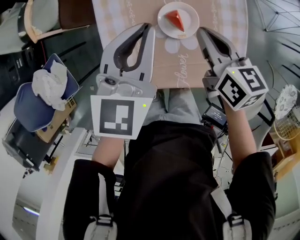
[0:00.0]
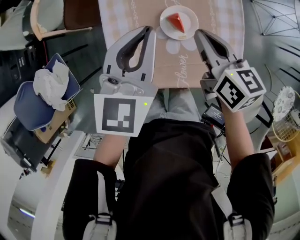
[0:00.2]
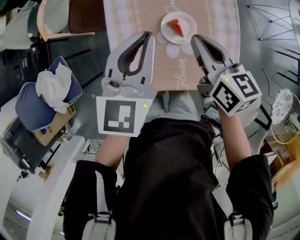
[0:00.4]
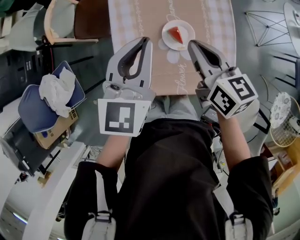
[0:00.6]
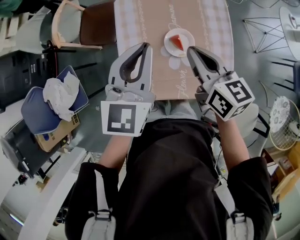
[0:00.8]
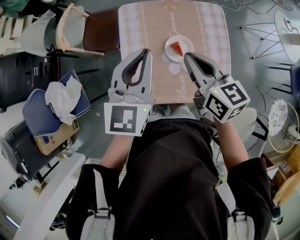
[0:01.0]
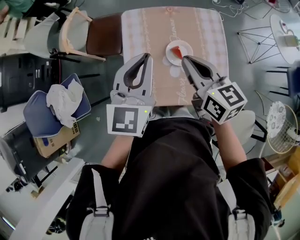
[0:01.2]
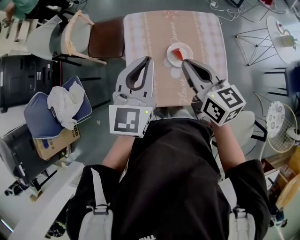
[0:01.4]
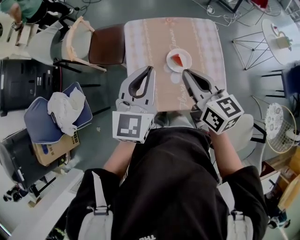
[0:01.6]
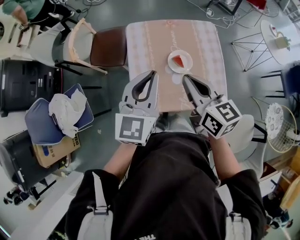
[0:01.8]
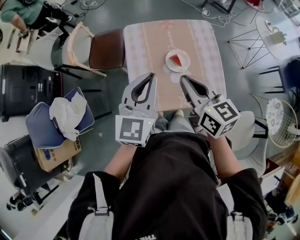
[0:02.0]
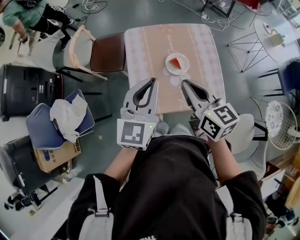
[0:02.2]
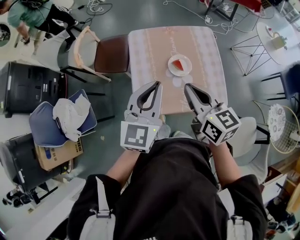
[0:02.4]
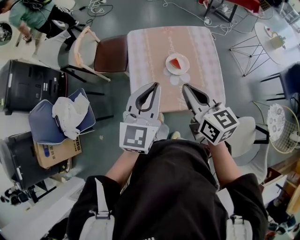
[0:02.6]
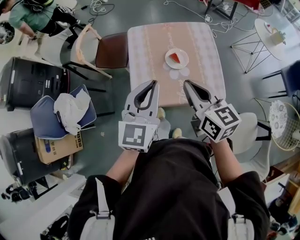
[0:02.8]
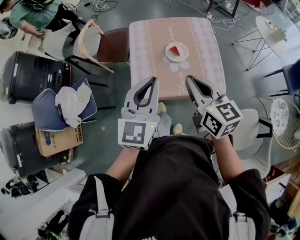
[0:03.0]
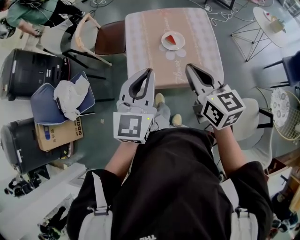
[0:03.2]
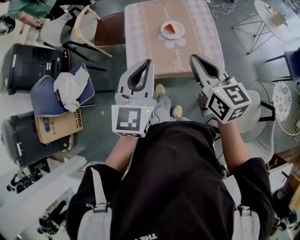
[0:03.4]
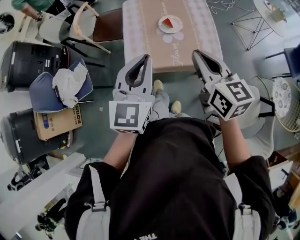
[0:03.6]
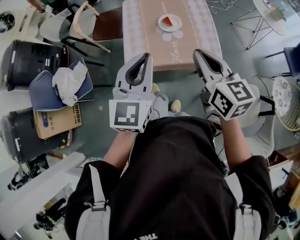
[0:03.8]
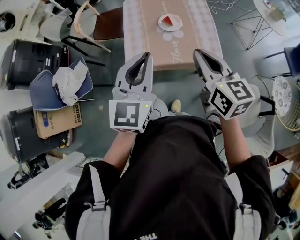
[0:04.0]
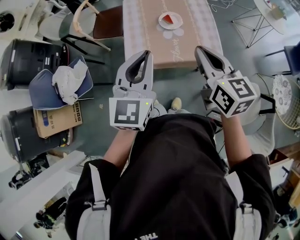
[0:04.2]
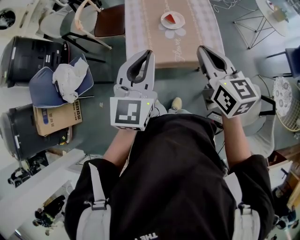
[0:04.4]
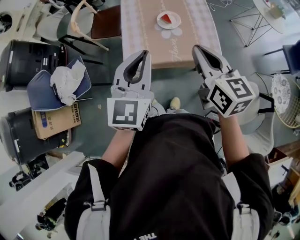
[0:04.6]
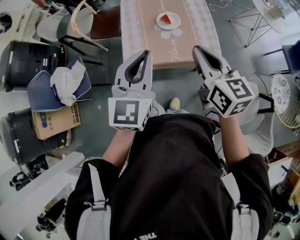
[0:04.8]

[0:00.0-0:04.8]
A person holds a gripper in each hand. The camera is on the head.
0:00.0 to 0:01.6: The right gripper is displaced upward, to the left and backward by roughly 25 cm, while the left gripper heads upward, backward and to the left, covering some 20 cm.
0:01.6 to 0:03.2: Both grippers move backward, some 20 cm.
0:03.2 to 0:04.8: The grippers both shift backward by roughly 5 cm.

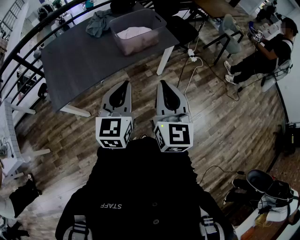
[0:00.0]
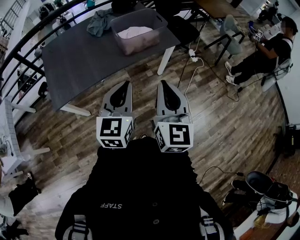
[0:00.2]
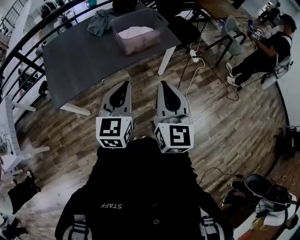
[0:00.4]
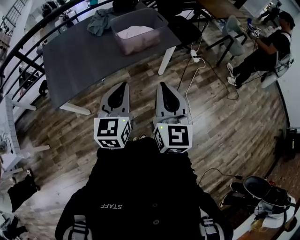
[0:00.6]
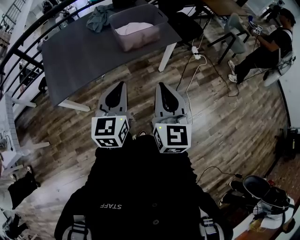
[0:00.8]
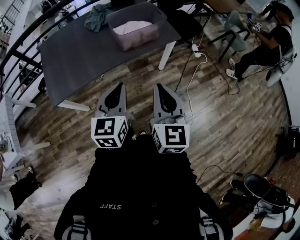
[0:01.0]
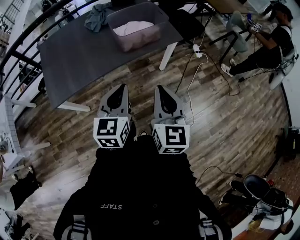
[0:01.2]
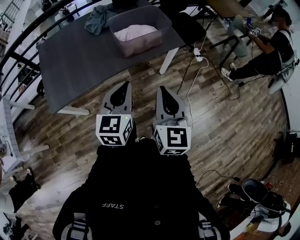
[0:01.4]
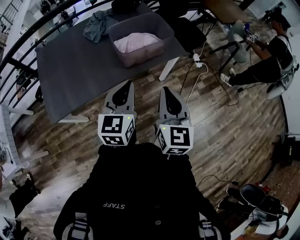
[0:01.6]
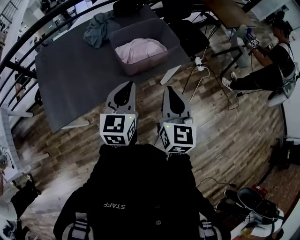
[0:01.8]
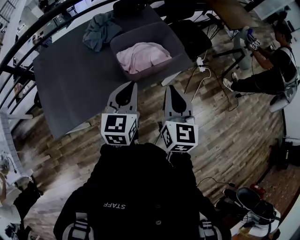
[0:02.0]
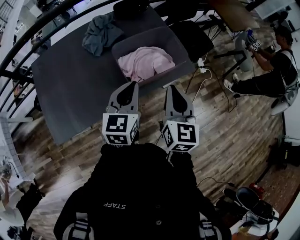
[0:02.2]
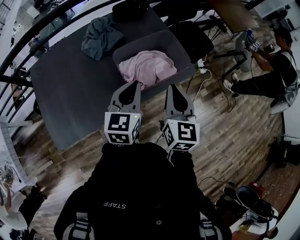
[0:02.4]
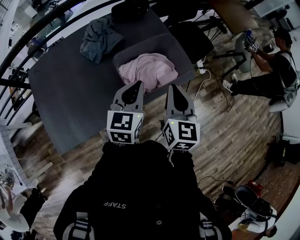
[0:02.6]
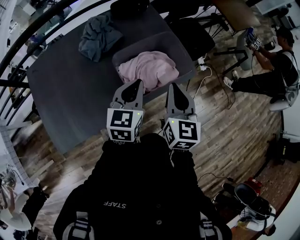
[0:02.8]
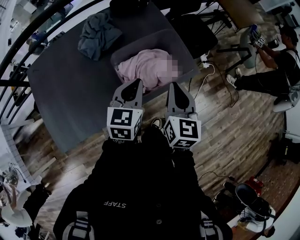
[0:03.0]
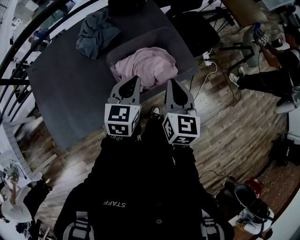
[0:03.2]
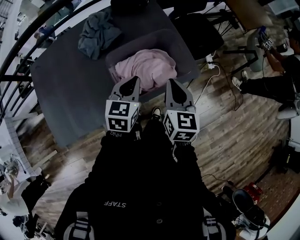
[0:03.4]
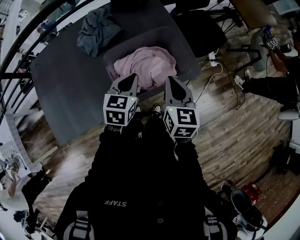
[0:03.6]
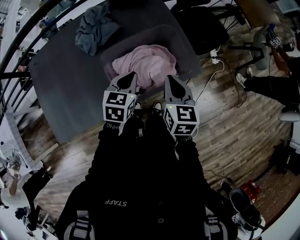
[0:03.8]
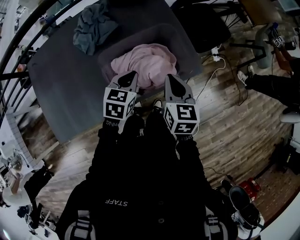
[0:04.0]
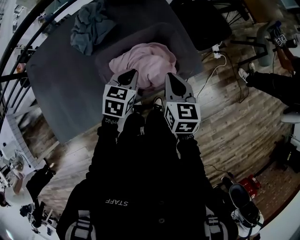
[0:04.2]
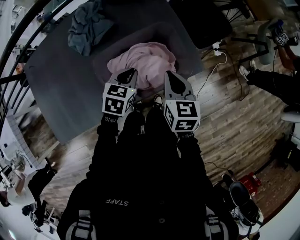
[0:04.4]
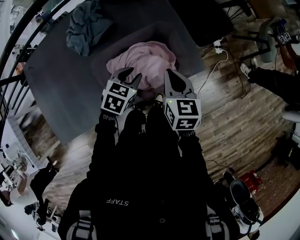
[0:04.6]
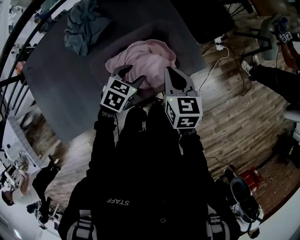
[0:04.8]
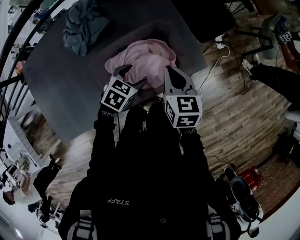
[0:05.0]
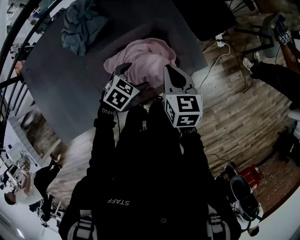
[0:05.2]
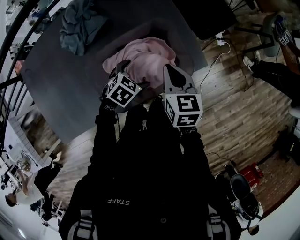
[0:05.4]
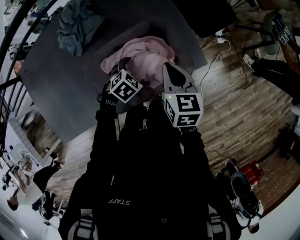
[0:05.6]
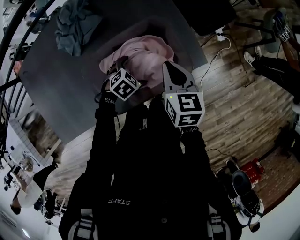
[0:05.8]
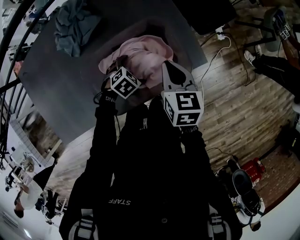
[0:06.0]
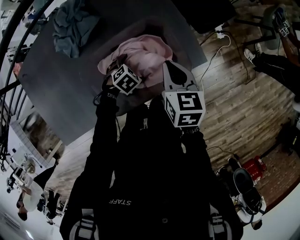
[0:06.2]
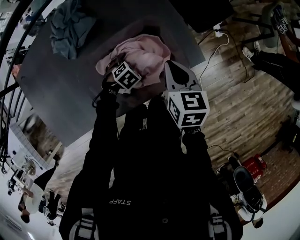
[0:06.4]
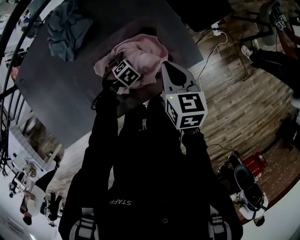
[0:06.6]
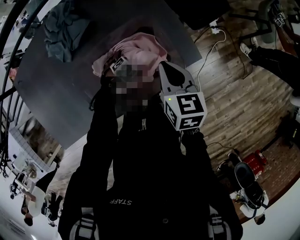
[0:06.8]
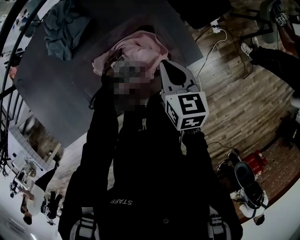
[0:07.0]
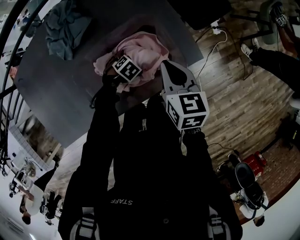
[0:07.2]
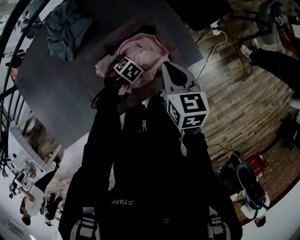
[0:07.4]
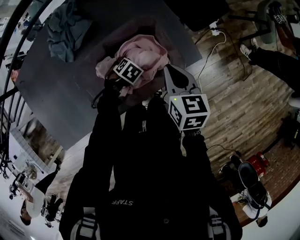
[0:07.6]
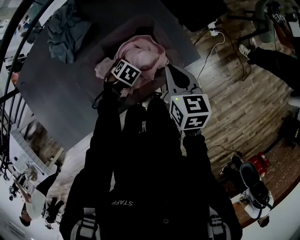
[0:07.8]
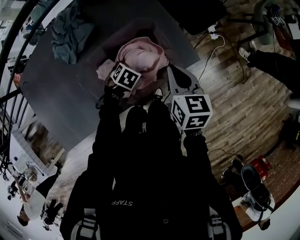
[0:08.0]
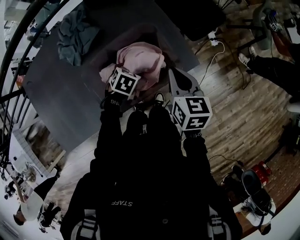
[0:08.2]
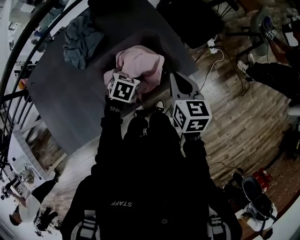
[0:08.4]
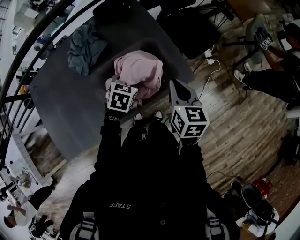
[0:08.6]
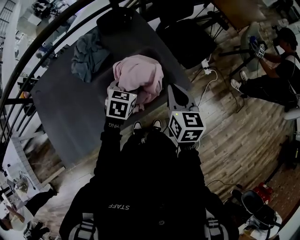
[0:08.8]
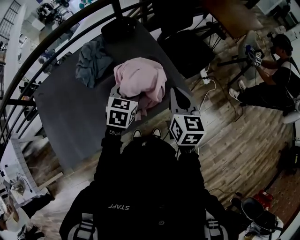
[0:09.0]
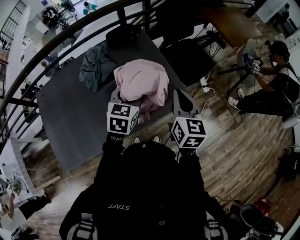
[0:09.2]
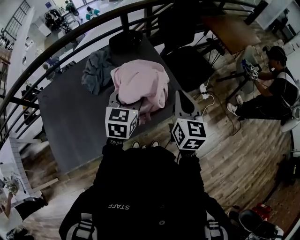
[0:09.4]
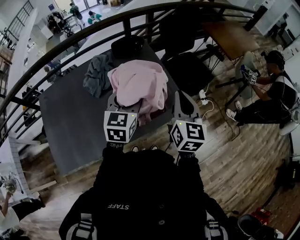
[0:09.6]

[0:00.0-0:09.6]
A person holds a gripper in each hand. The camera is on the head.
0:00.0 to 0:01.6: The right gripper travels forward and downward by about 15 cm; the left gripper travels forward by roughly 15 cm.
0:01.6 to 0:03.2: The two grippers go approximately 30 cm forward.
0:03.2 to 0:04.8: The grippers both shift downward and forward by some 15 cm. The left gripper rotates roughly 40 degrees, and opens its fingers.
0:04.8 to 0:06.4: The left gripper moves downward, some 15 cm, turns by roughly 30 degrees, and opens.
0:06.4 to 0:08.0: The left gripper closes up.
0:08.0 to 0:09.6: The left gripper travels upward by approximately 40 cm, and tips its fingers upward by about 60 degrees; the right gripper shifts approximately 20 cm upward, and turns by some 30 degrees.

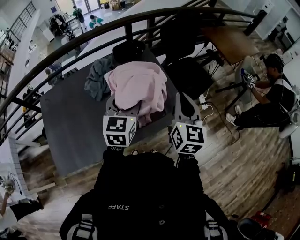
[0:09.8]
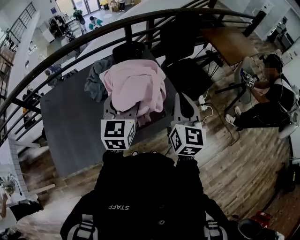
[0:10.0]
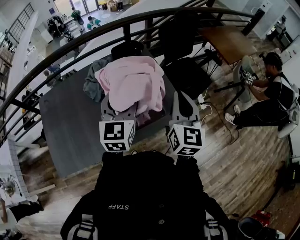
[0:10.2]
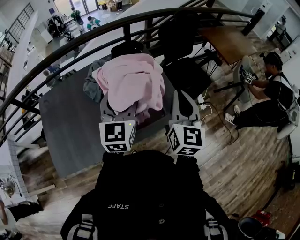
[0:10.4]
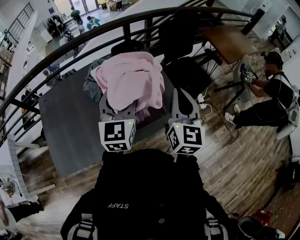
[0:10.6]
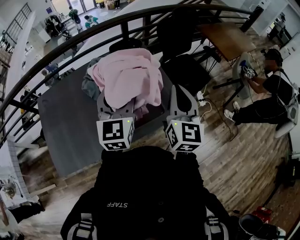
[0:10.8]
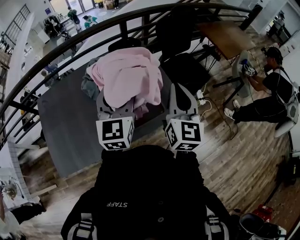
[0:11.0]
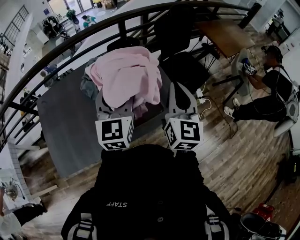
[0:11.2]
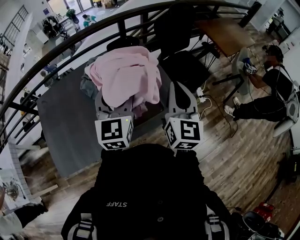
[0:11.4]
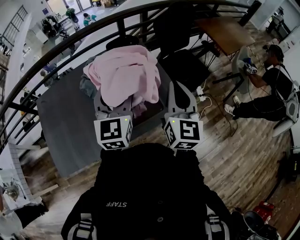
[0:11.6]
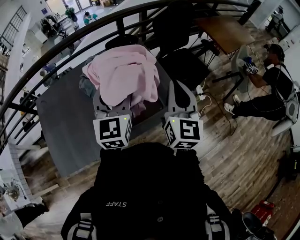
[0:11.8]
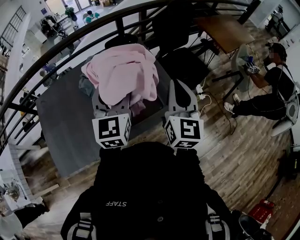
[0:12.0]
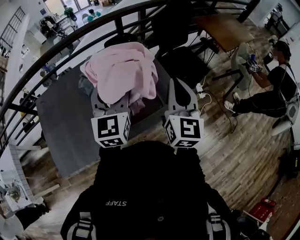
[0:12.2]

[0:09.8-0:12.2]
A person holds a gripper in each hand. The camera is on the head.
0:09.8 to 0:11.0: The left gripper heads upward, covering approximately 5 cm.
0:11.0 to 0:12.2: Neither gripper changes place.

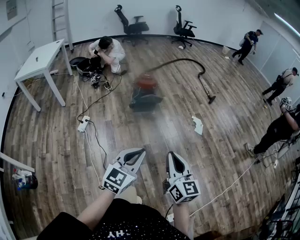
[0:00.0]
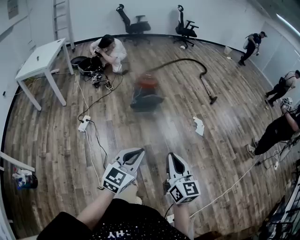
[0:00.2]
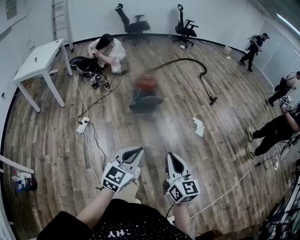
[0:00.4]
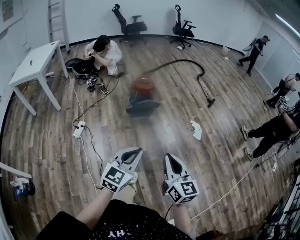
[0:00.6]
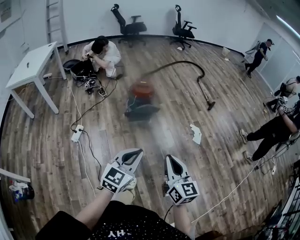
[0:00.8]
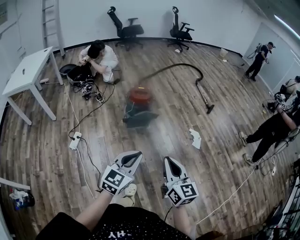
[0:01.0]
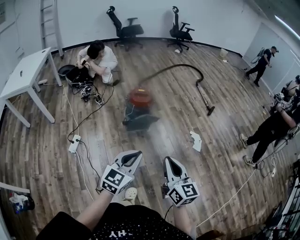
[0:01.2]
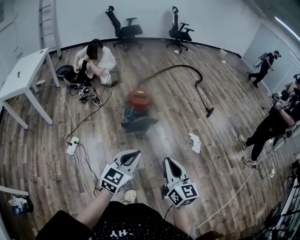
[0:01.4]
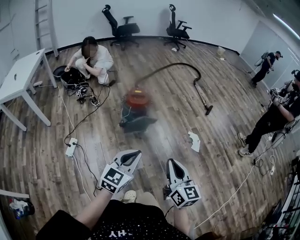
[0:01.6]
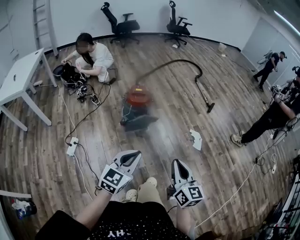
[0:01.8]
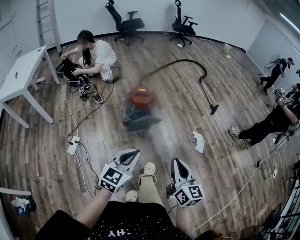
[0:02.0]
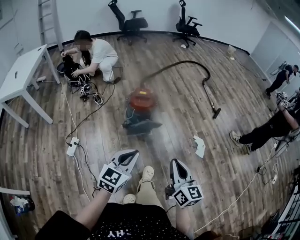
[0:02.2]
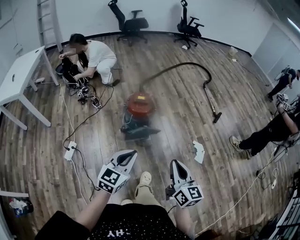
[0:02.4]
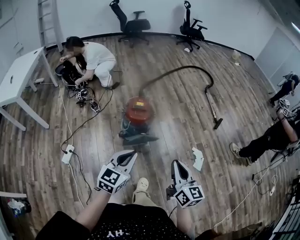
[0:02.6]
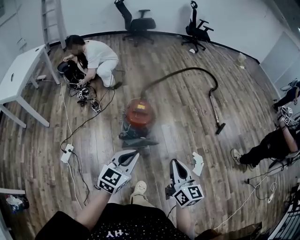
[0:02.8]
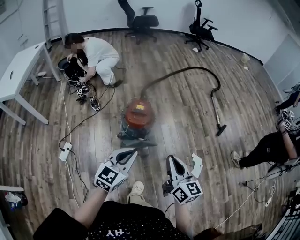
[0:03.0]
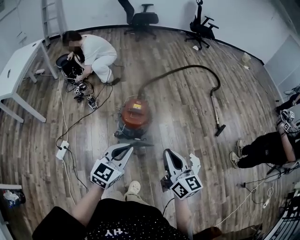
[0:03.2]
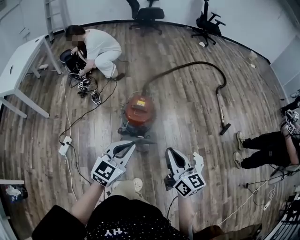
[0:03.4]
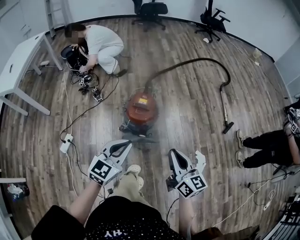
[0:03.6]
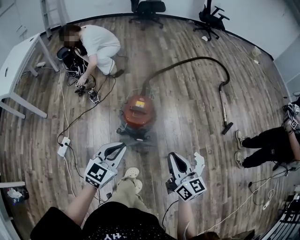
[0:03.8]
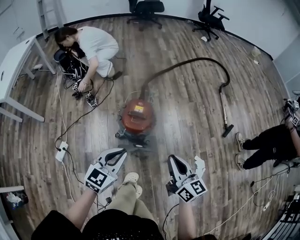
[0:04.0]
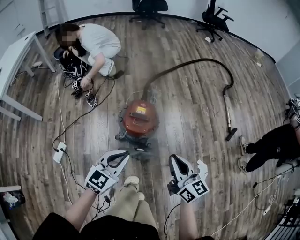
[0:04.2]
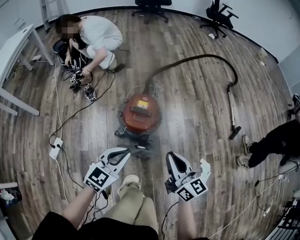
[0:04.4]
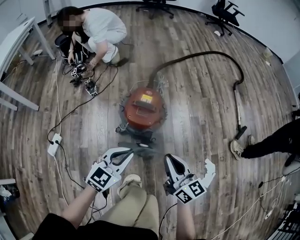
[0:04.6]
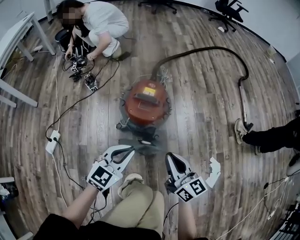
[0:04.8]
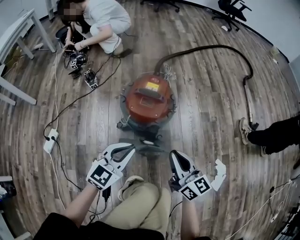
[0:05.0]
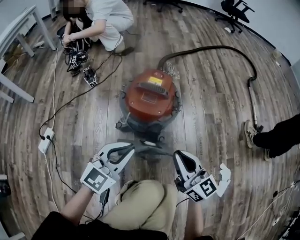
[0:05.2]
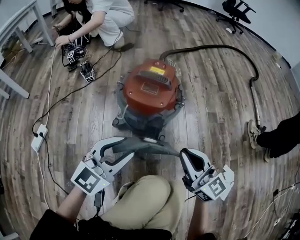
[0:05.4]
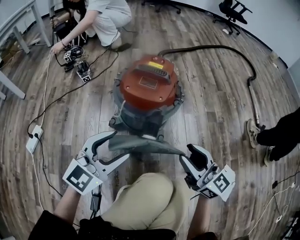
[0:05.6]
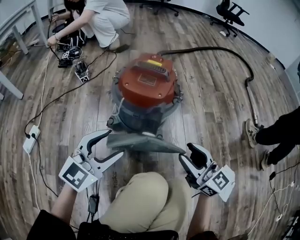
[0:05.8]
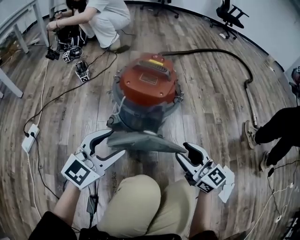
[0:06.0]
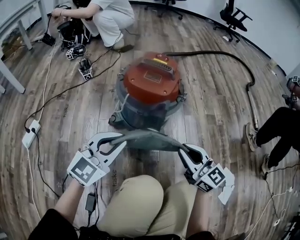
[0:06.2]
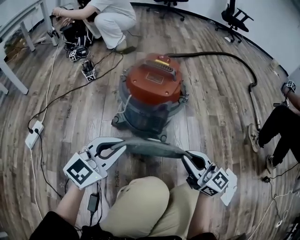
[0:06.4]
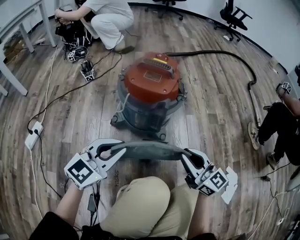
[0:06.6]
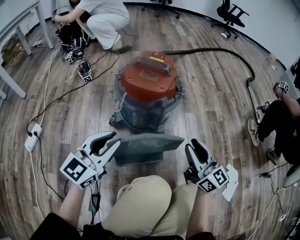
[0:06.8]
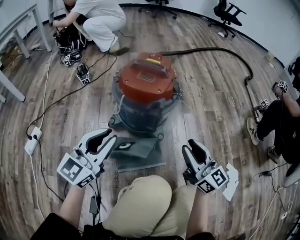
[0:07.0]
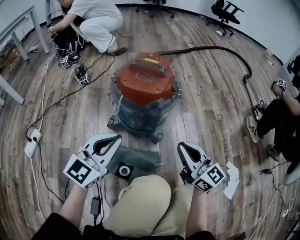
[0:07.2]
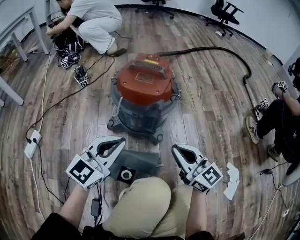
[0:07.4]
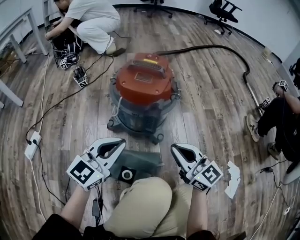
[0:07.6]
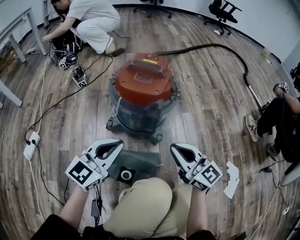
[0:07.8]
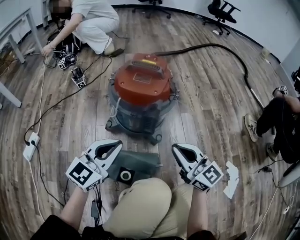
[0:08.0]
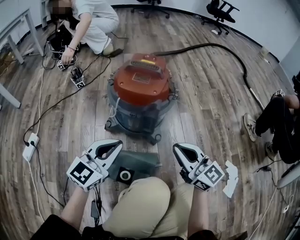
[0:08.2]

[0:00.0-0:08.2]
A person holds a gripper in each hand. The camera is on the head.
0:00.0 to 0:01.6: The grippers both shift forward by about 30 cm.
0:01.6 to 0:03.2: The two grippers go approximately 35 cm forward. The right gripper changes its angle by some 20 degrees.
0:03.2 to 0:05.0: The two grippers go about 35 cm downward.
0:05.0 to 0:06.6: The two grippers go some 15 cm downward. The left gripper opens, then closes once more, while the right gripper turns by roughly 20 degrees, and opens, then closes once more.
0:06.6 to 0:08.2: The grippers make only small movements.
